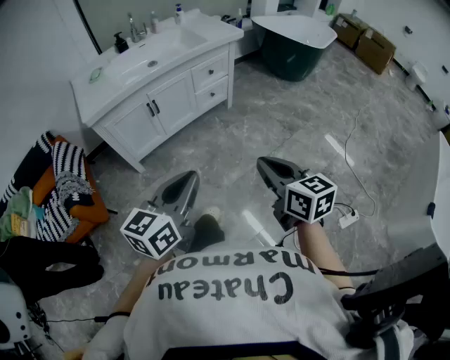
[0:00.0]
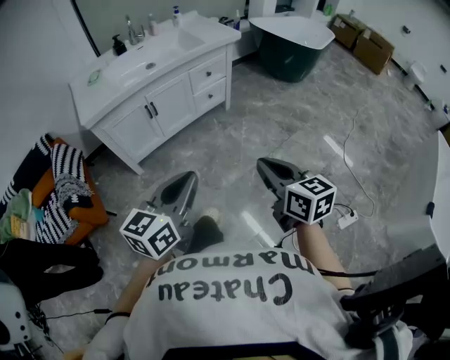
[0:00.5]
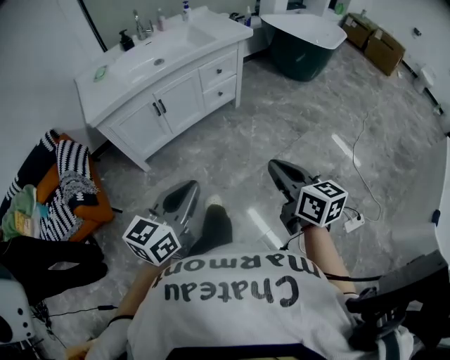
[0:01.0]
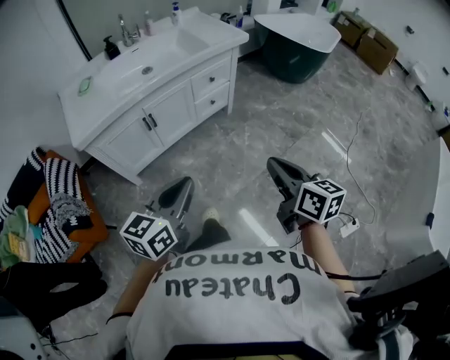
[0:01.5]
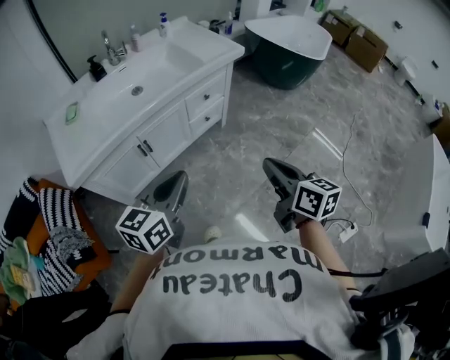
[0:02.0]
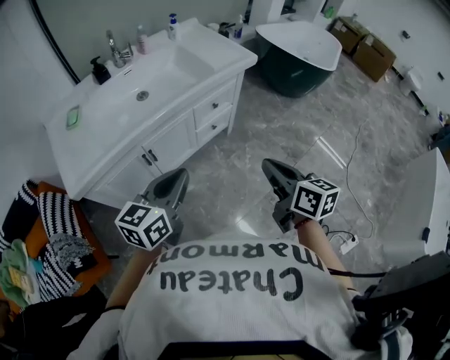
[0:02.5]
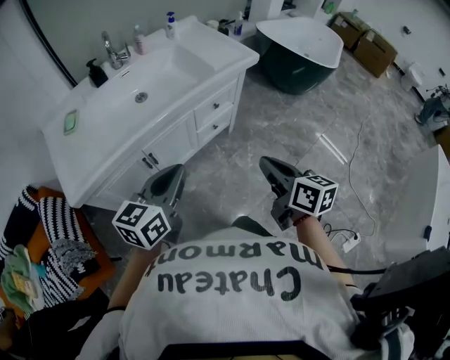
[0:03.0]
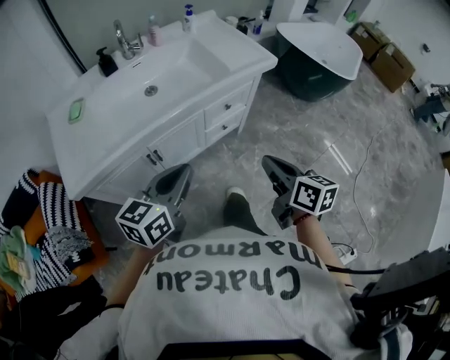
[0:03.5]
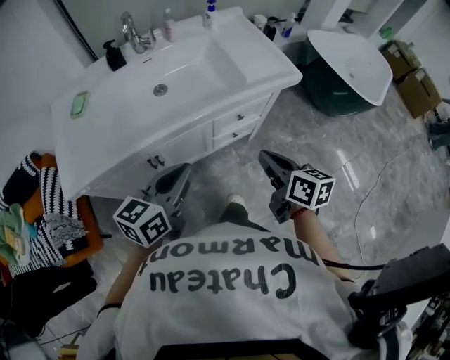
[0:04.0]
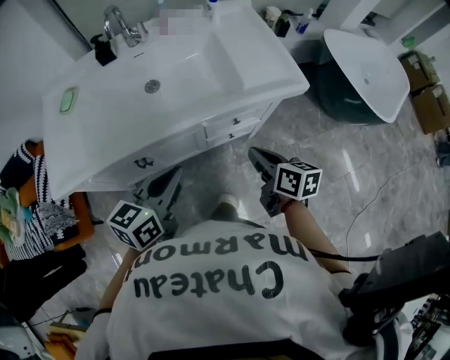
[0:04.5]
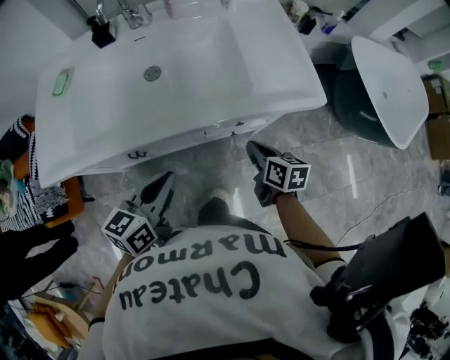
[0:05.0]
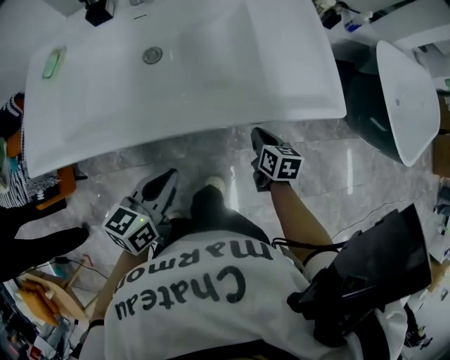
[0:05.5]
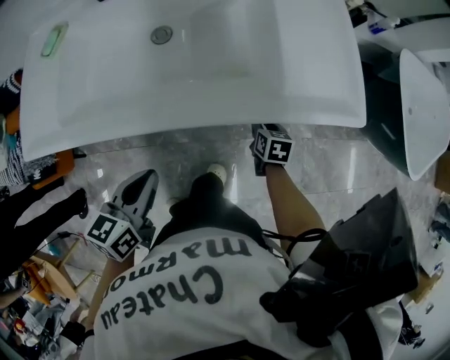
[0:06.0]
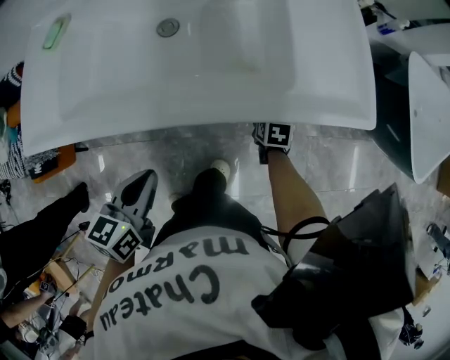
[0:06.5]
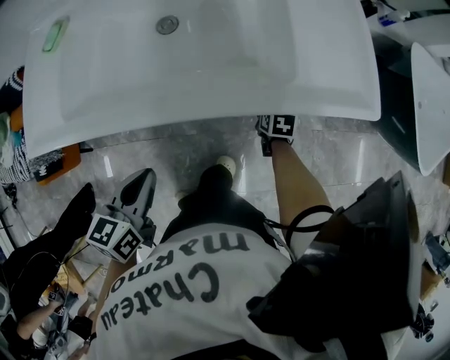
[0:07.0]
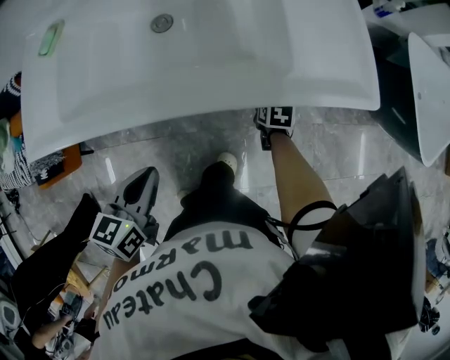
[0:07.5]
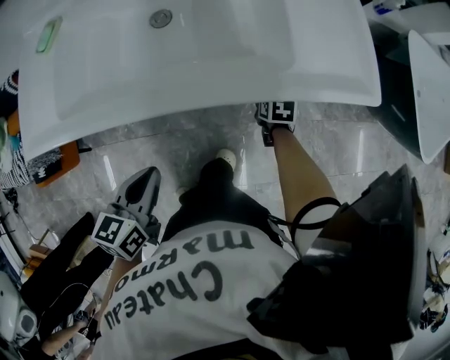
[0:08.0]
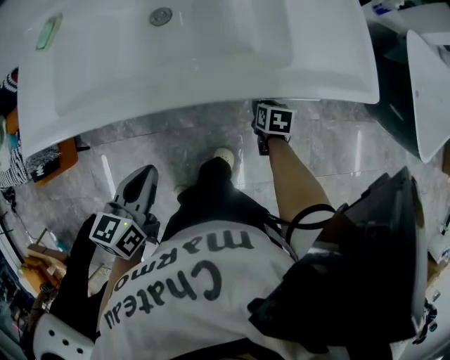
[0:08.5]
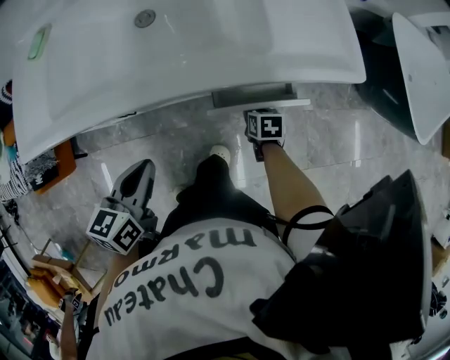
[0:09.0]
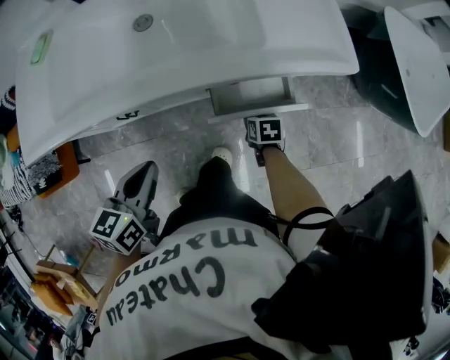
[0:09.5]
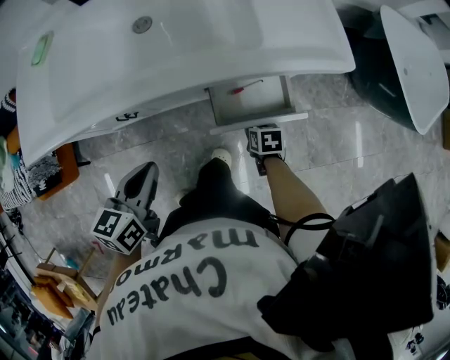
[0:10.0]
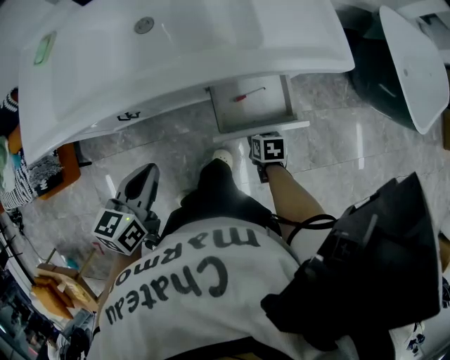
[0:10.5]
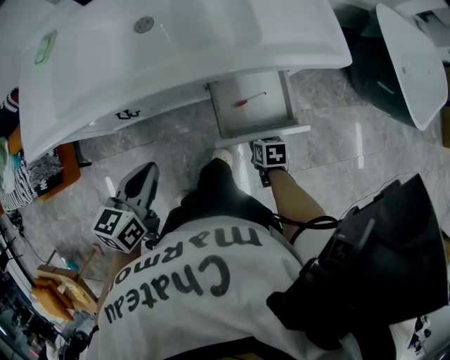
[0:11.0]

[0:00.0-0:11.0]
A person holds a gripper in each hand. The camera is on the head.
0:00.0 to 0:02.0: Both grippers travel together forward, roughly 25 cm.
0:02.0 to 0:03.5: Both grippers travel together forward, about 15 cm.
0:03.5 to 0:05.5: The right gripper travels forward and downward by approximately 40 cm, and turns by roughly 30 degrees. The left gripper travels forward, downward and to the right by about 25 cm, and swivels about 30 degrees.
0:05.5 to 0:07.5: The left gripper moves some 10 cm, while the right gripper goes approximately 10 cm downward, tips its fingers downward by approximately 40 degrees, and opens its fingers.
0:07.5 to 0:09.0: The right gripper turns by approximately 40 degrees.
0:09.0 to 0:11.0: The right gripper travels backward by some 10 cm.

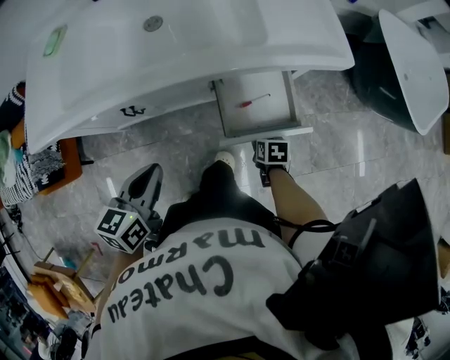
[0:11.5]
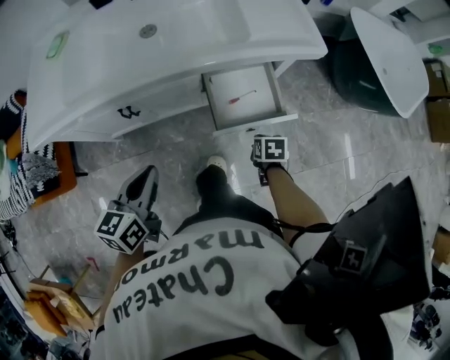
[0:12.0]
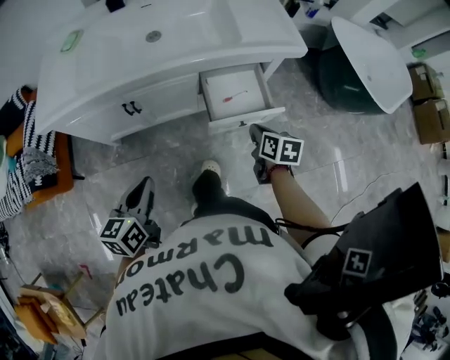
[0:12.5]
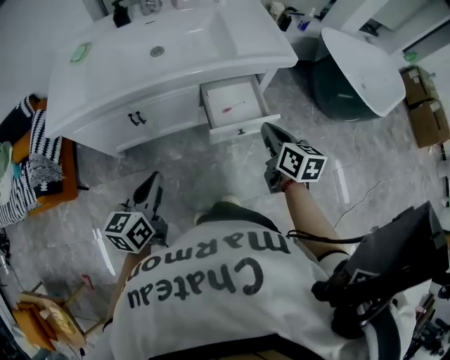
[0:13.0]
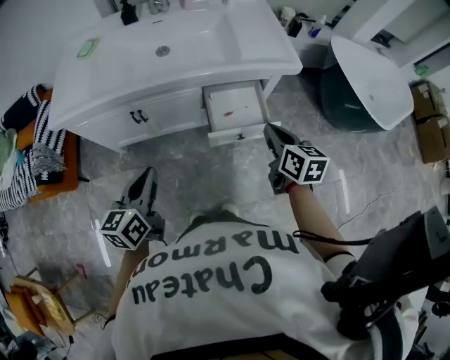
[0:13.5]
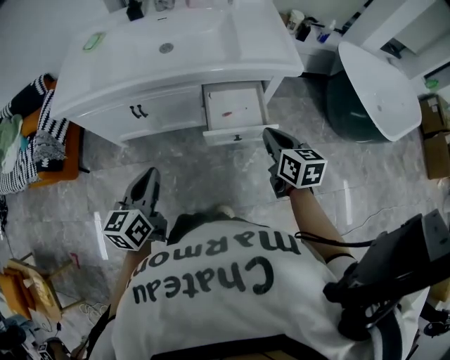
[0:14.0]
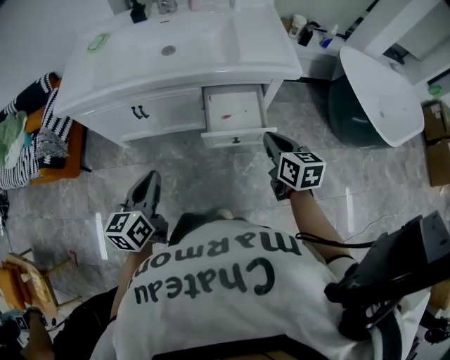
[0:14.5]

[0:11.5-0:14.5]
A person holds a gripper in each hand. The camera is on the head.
0:11.5 to 0:13.0: The left gripper goes approximately 15 cm backward and upward; the right gripper moves upward, about 30 cm, angles its fingers upward, by roughly 40 degrees, and closes.
0:13.0 to 0:14.5: The grippers both shift to the right by some 5 cm.

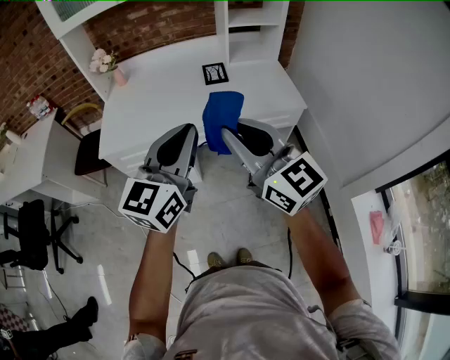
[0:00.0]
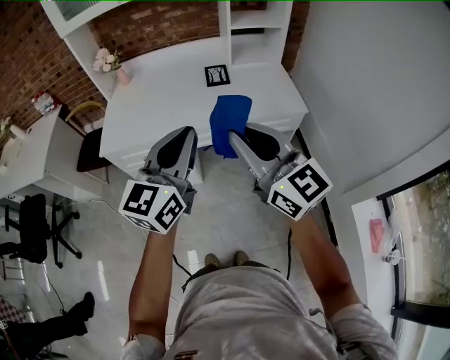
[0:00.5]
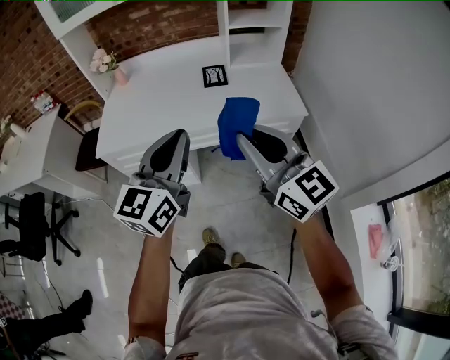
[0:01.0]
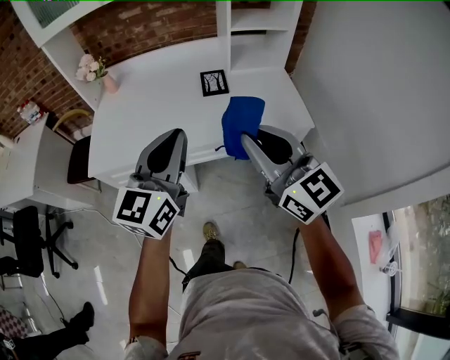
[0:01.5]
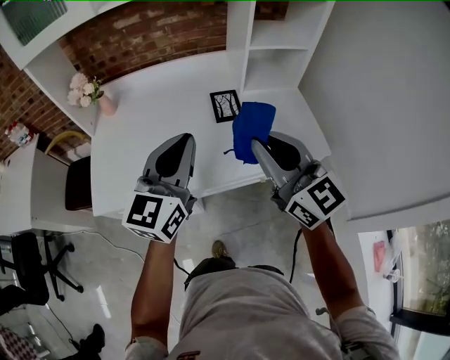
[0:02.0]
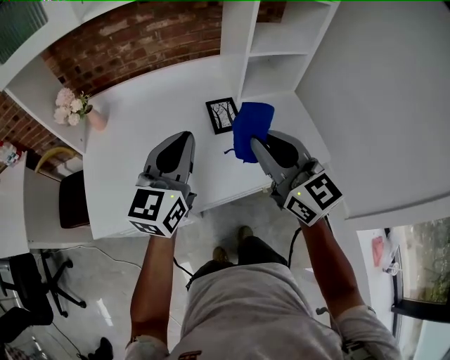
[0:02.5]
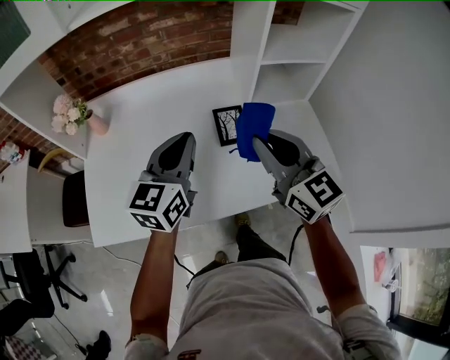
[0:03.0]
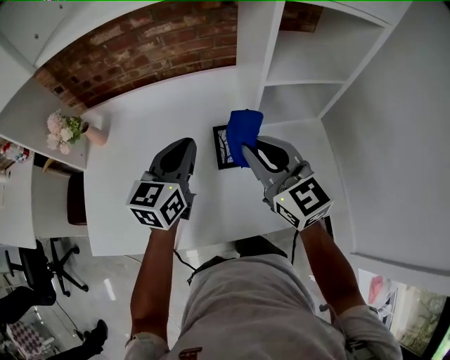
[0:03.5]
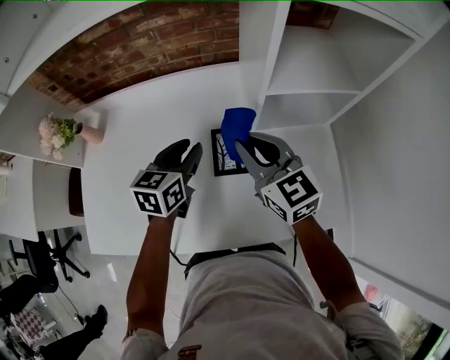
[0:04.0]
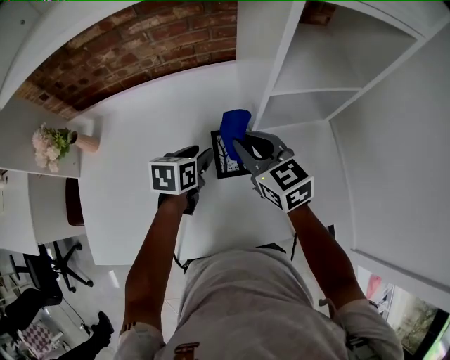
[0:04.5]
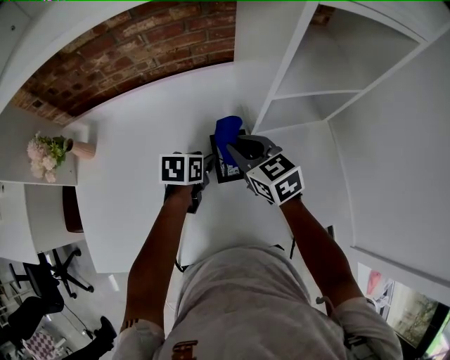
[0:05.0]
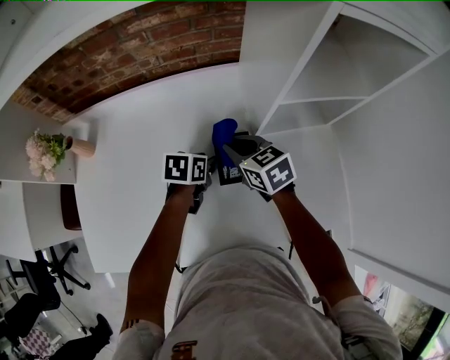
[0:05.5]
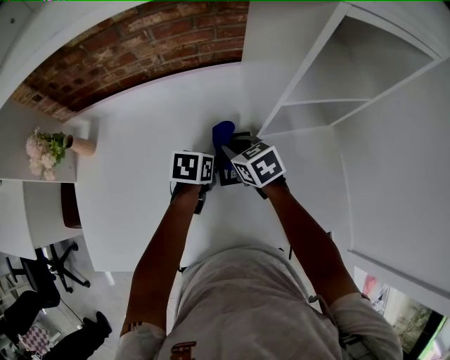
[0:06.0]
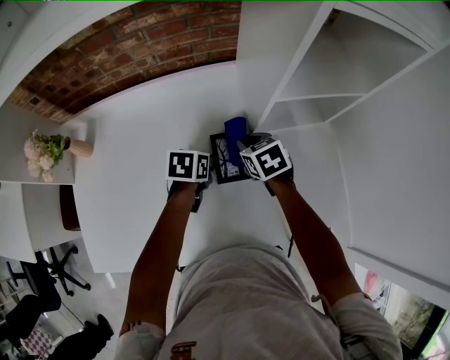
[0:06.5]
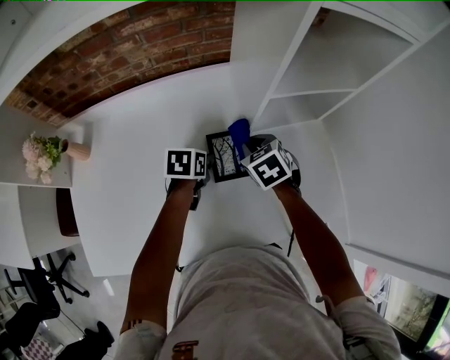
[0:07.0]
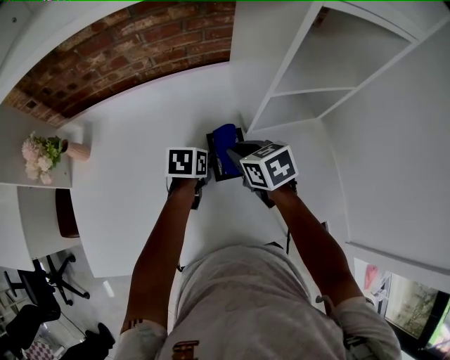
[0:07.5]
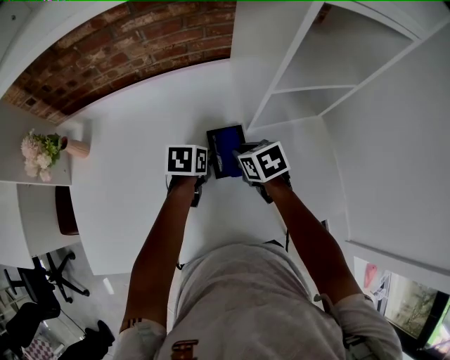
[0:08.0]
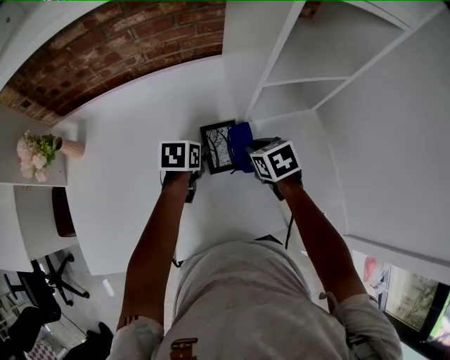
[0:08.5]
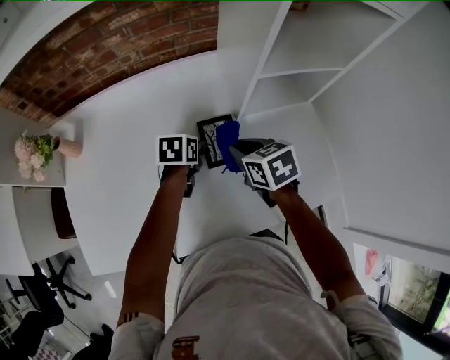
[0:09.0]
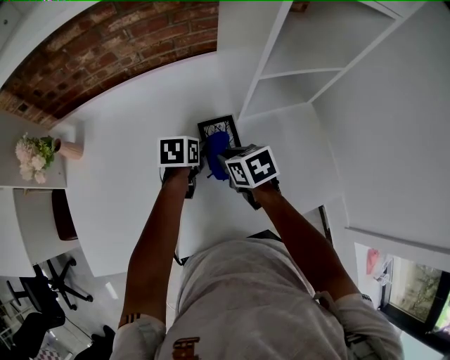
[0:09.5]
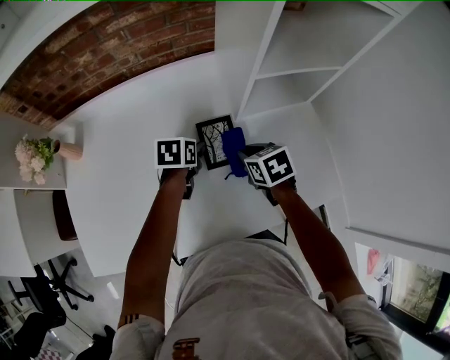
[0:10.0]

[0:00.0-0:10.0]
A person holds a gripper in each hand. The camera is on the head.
0:00.0 to 0:02.0: The grippers both shift forward by roughly 25 cm.
0:02.0 to 0:04.0: The left gripper heads forward and downward, covering roughly 35 cm, angles its fingers downward, by roughly 30 degrees, and opens up, while the right gripper goes some 30 cm forward.
0:04.0 to 0:06.0: Both grippers move downward, roughly 15 cm. The right gripper points its fingers about 30 degrees further downward. Meanwhile the left gripper changes its angle by about 30 degrees.
0:06.0 to 0:08.0: The right gripper shifts roughly 5 cm to the right.
0:08.0 to 0:10.0: The right gripper goes left and right, some 10 cm each way, reversing 2 times.

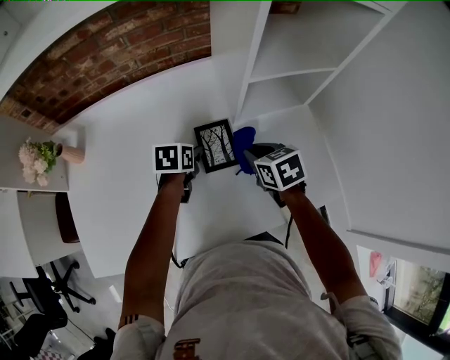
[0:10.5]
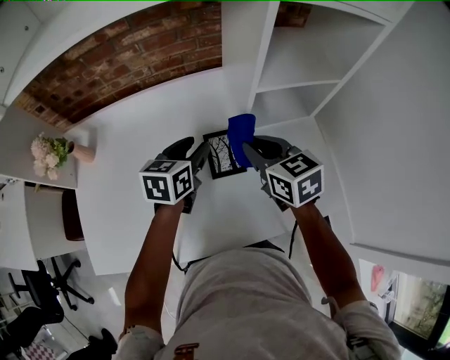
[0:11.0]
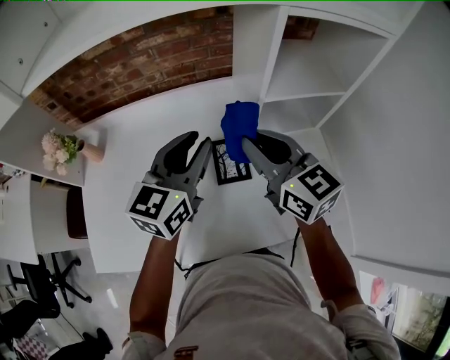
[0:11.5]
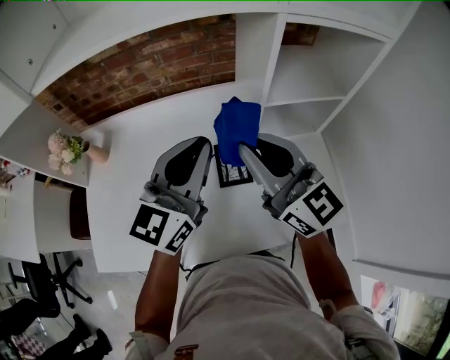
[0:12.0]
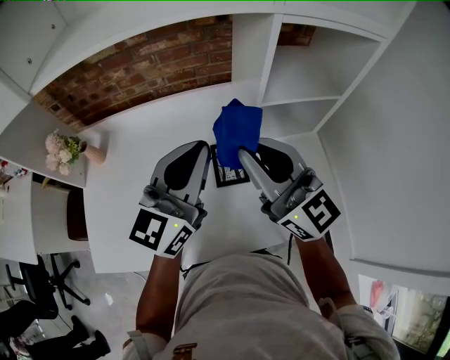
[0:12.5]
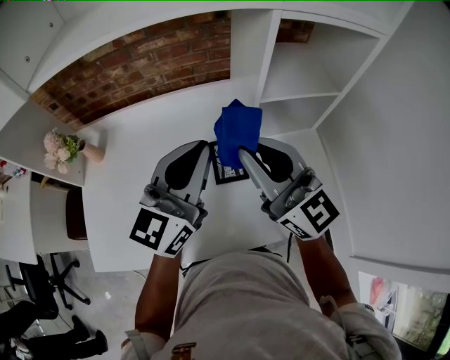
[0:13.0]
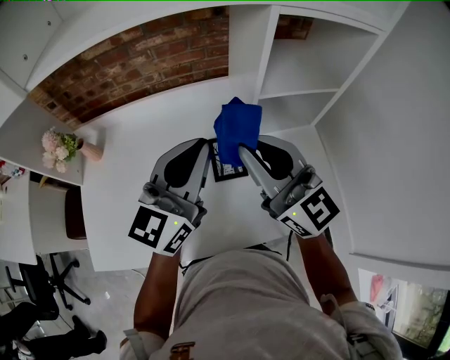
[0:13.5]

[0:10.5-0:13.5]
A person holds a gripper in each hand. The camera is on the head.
0:10.5 to 0:12.0: Both grippers travel together upward, about 30 cm. The left gripper tips its fingers upward by about 60 degrees, and closes. Meanwhile the right gripper angles its fingers upward, by about 60 degrees.
0:12.0 to 0:13.5: The grippers make only small movements.
